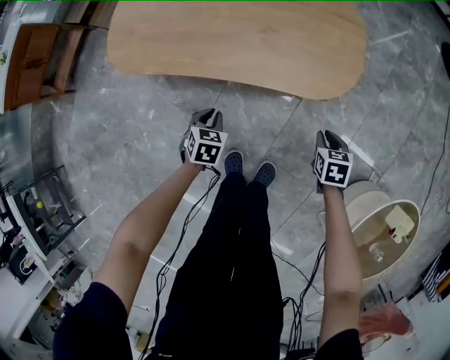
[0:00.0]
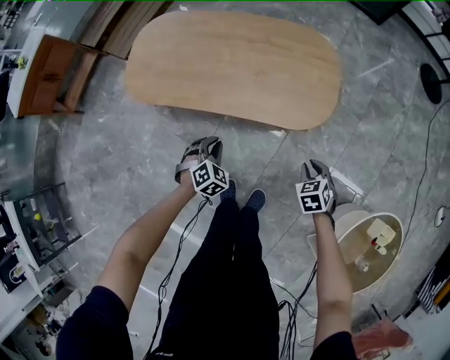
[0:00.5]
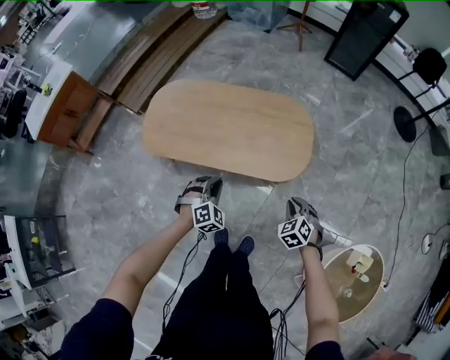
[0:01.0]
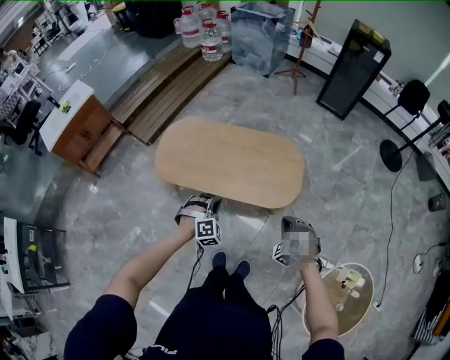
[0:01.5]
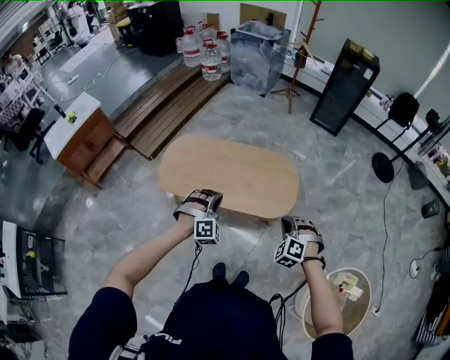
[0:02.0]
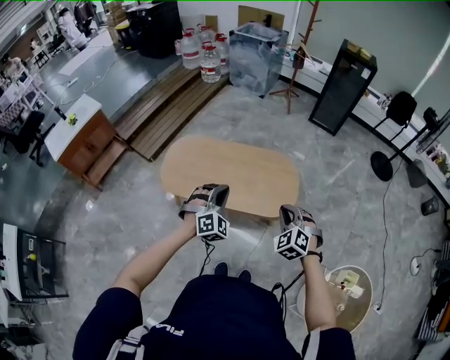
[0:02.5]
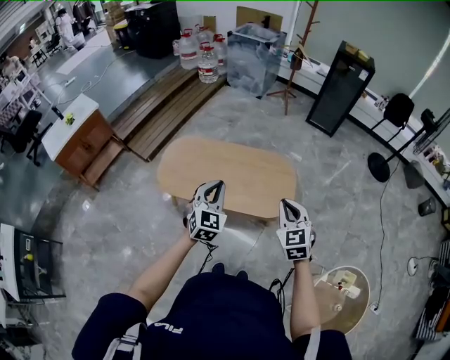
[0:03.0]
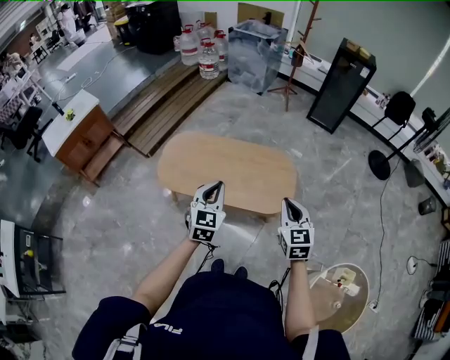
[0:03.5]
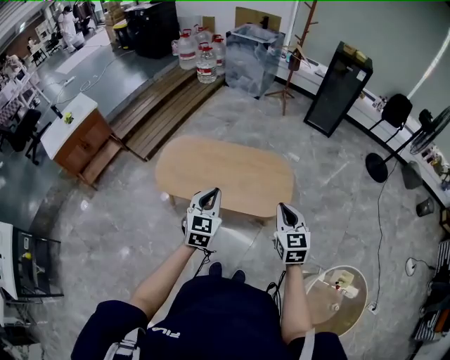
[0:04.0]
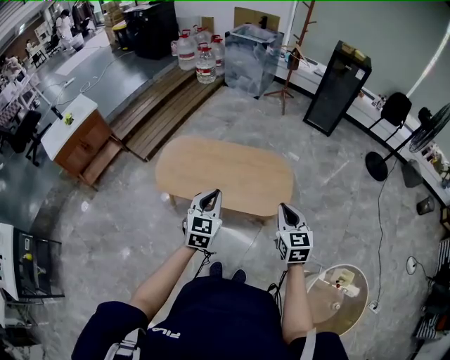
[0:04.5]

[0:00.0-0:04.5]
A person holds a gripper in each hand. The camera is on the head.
0:00.0 to 0:02.0: Both grippers move upward, roughly 50 cm. The right gripper twists roughly 70 degrees counterclockwise, seen from behind; the left gripper rotates around the line of its fingers by about 70 degrees, clockwise from behind.
0:02.0 to 0:04.5: Both grippers travel together upward, roughly 10 cm. The right gripper rotates around the line of its fingers by some 60 degrees, clockwise from behind. The left gripper rolls counterclockwise, seen from behind, by some 70 degrees.

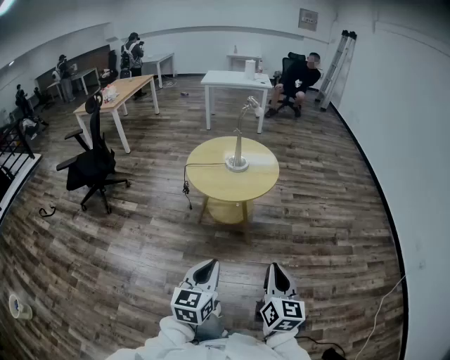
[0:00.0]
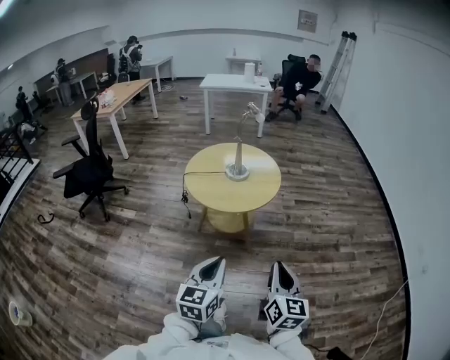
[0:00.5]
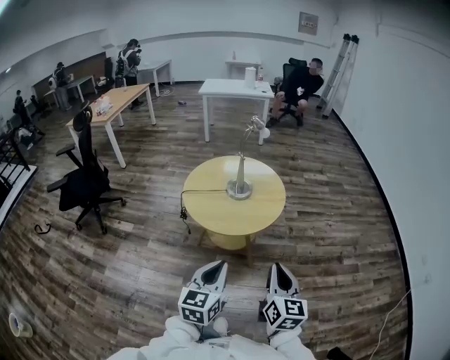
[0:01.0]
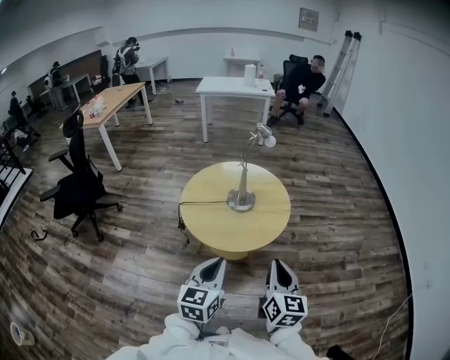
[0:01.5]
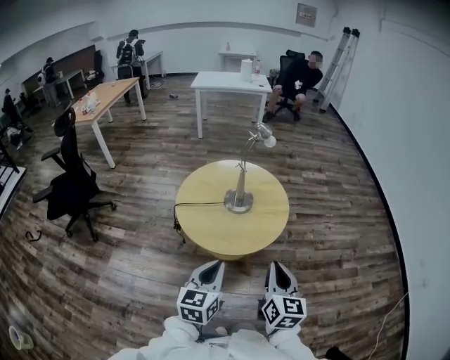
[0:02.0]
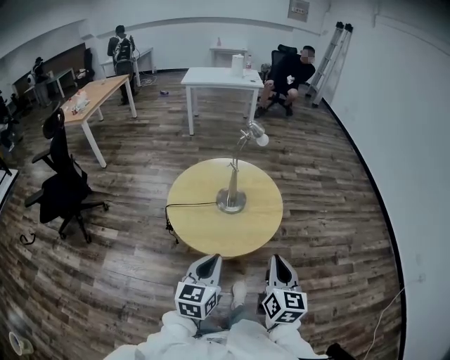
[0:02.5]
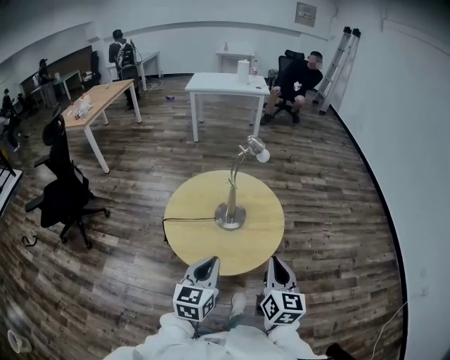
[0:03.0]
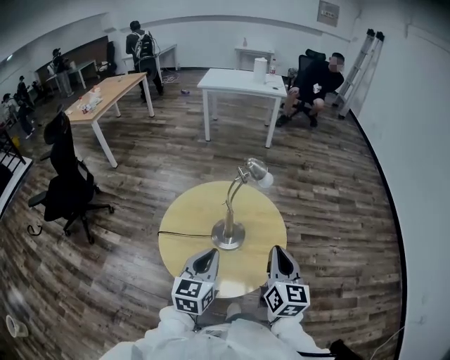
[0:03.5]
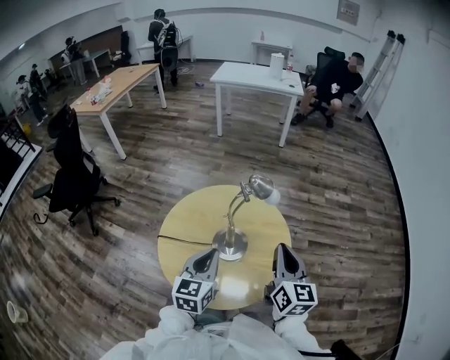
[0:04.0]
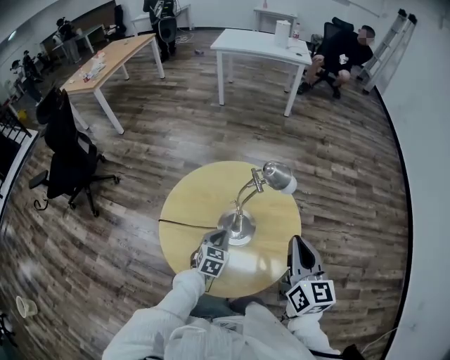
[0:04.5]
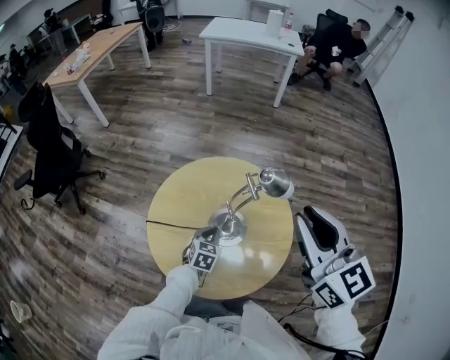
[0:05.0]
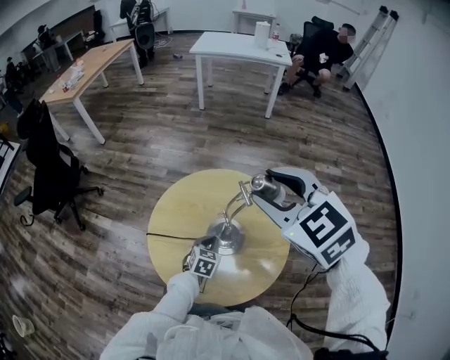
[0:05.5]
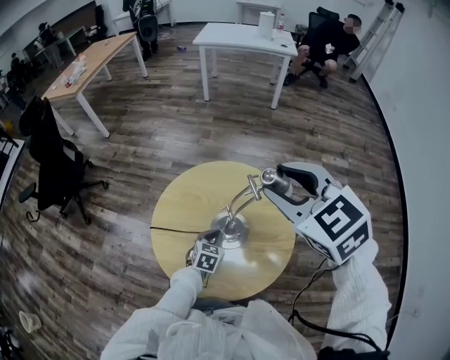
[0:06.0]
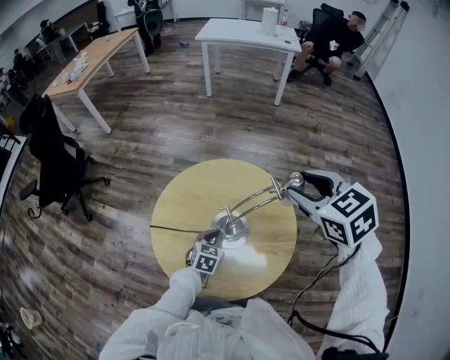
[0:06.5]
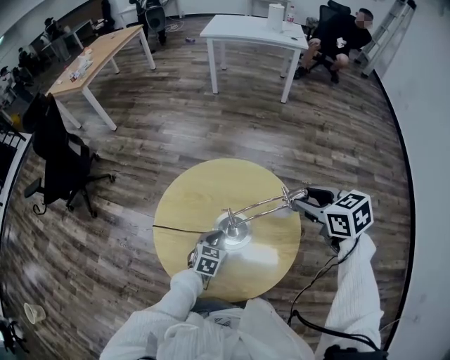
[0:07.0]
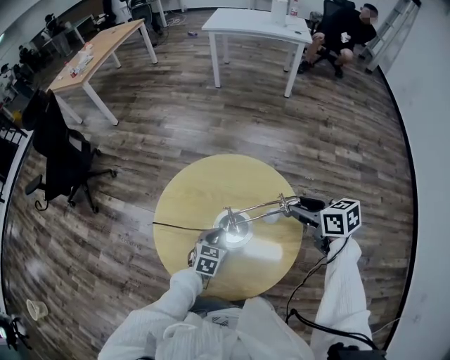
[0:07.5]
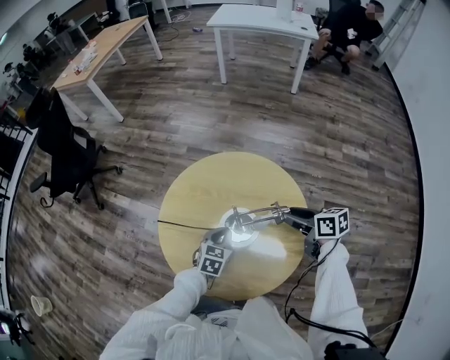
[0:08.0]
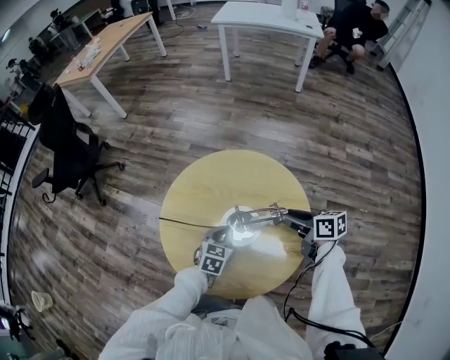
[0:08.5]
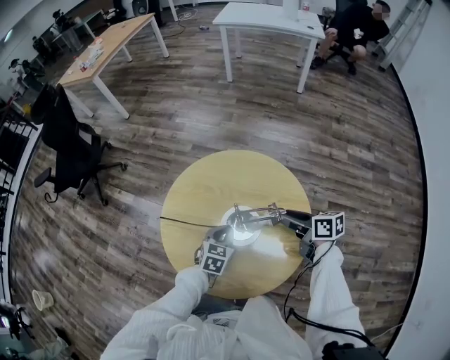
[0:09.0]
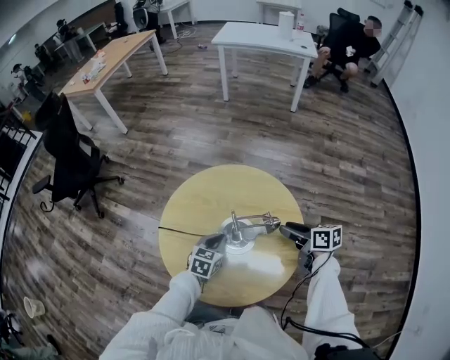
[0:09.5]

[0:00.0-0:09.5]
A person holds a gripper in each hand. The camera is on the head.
0:00.0 to 0:02.0: The two grippers go some 35 cm forward.
0:02.0 to 0:04.0: The two grippers go approximately 35 cm forward.
0:04.0 to 0:05.5: The left gripper is displaced downward and forward by some 25 cm, and changes its angle by about 30 degrees, while the right gripper goes roughly 20 cm upward, to the left and forward, changes its angle by some 60 degrees, and opens.
0:05.5 to 0:07.5: The right gripper is displaced downward and to the right by approximately 30 cm, and twists about 40 degrees clockwise, seen from behind.
0:07.5 to 0:09.5: The right gripper goes some 10 cm downward, and turns by some 20 degrees.

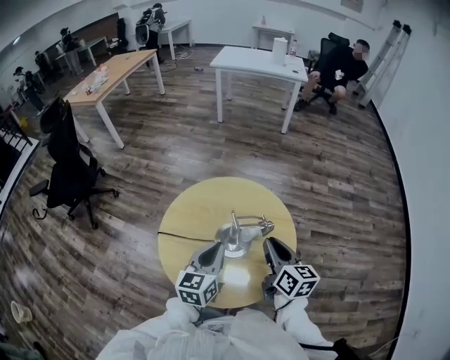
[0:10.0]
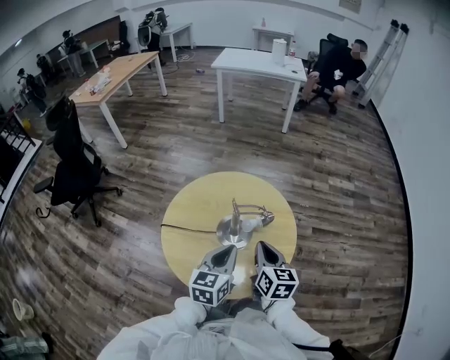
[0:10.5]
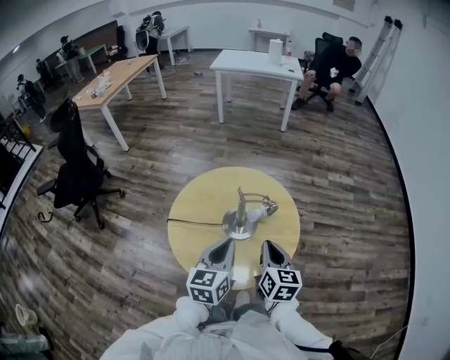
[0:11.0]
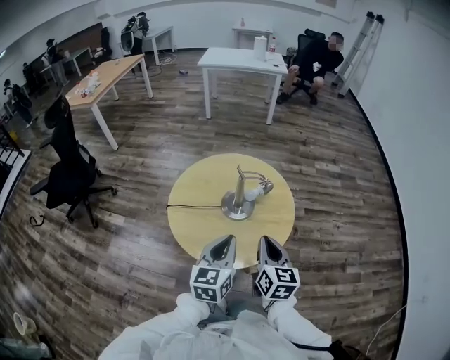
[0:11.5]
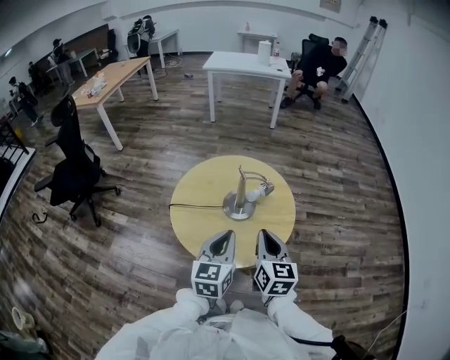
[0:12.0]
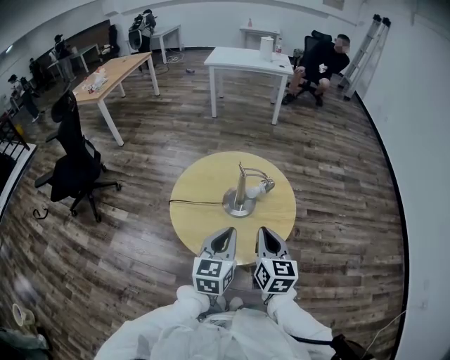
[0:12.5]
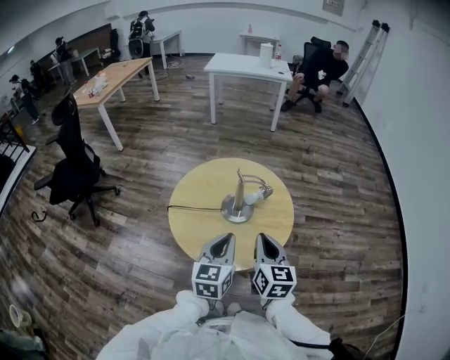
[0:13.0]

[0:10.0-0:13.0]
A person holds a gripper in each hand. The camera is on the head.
0:10.0 to 0:11.5: Both grippers travel together backward, some 20 cm. The right gripper closes its fingers.
0:11.5 to 0:13.0: The grippers make only small movements.

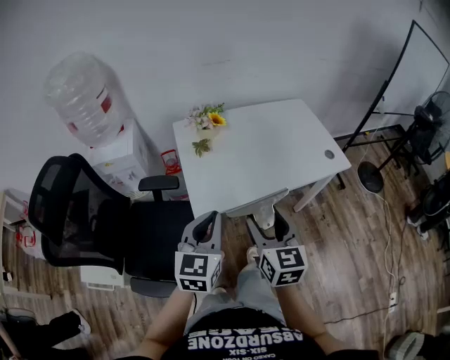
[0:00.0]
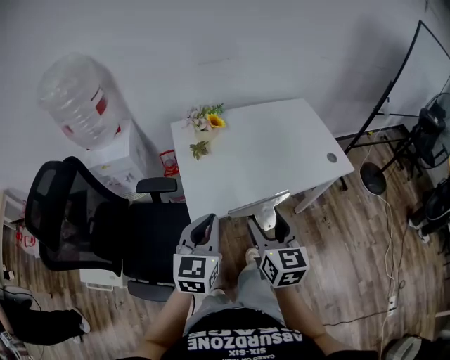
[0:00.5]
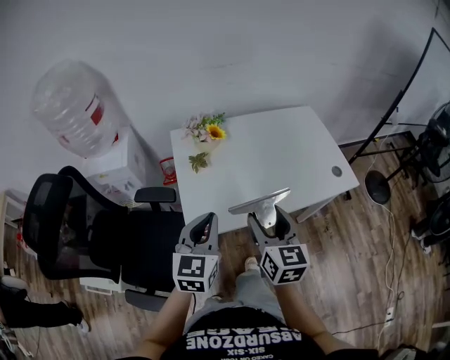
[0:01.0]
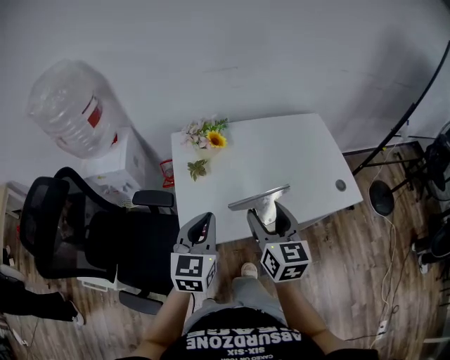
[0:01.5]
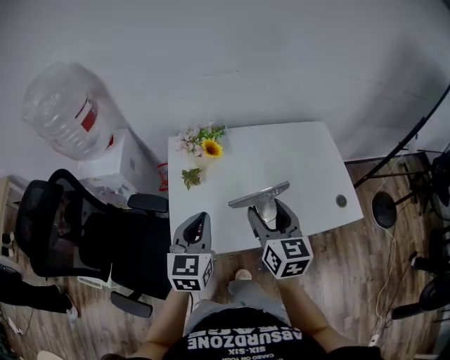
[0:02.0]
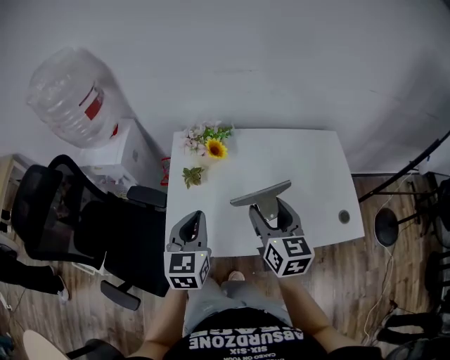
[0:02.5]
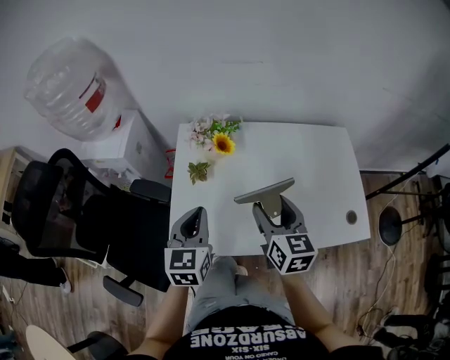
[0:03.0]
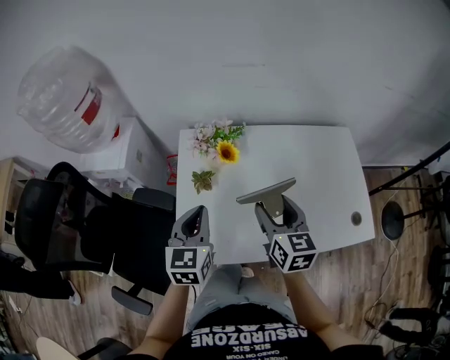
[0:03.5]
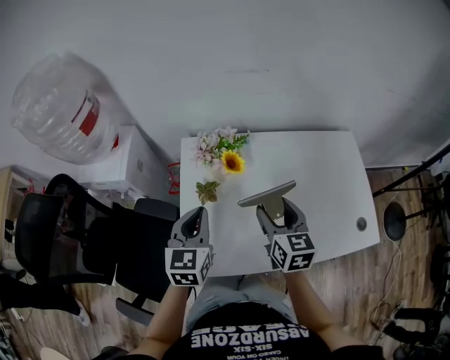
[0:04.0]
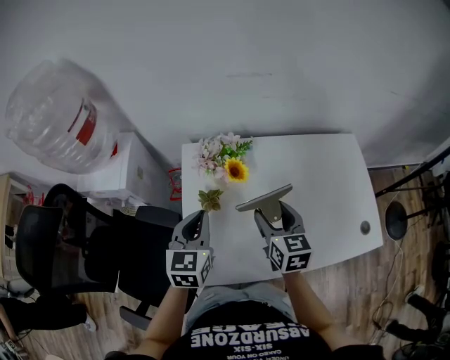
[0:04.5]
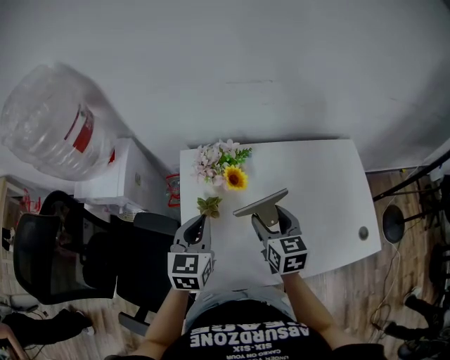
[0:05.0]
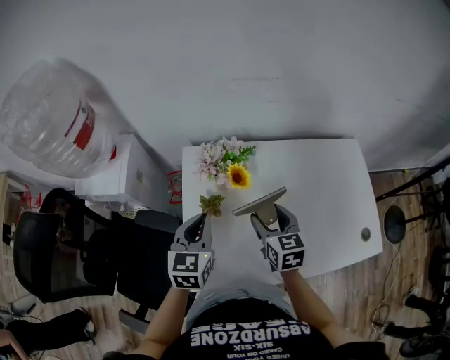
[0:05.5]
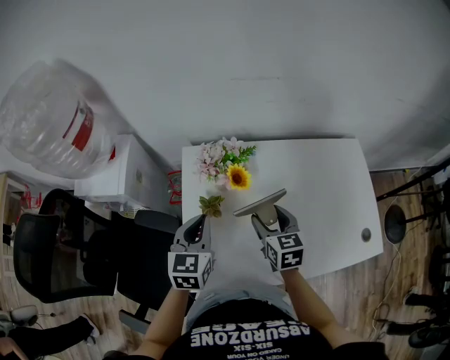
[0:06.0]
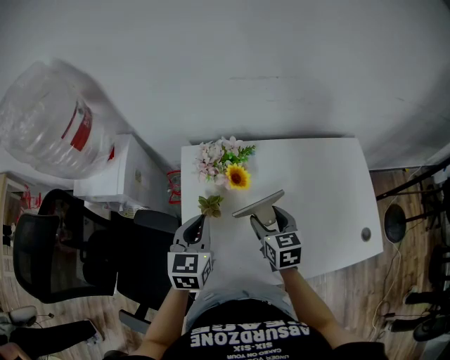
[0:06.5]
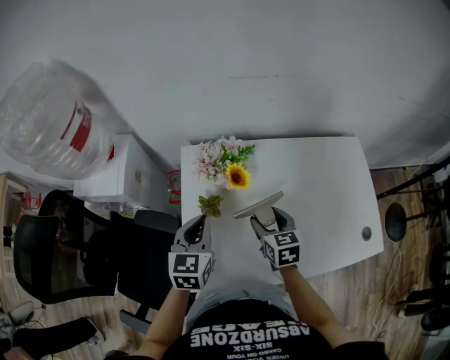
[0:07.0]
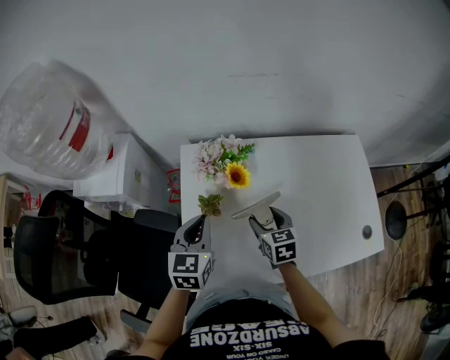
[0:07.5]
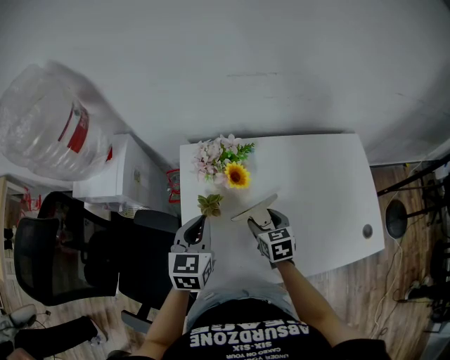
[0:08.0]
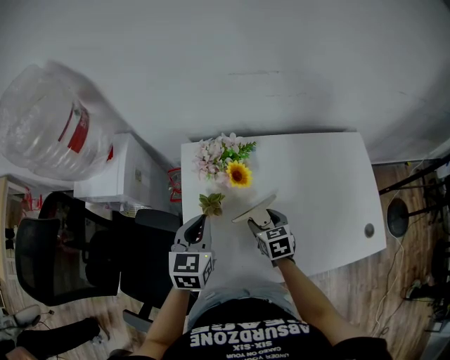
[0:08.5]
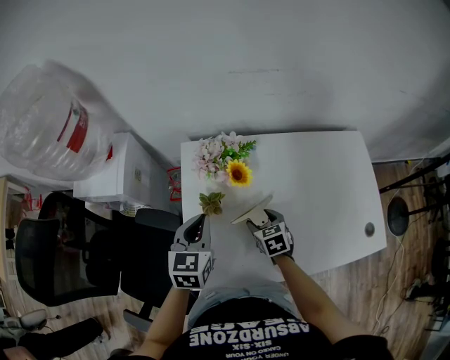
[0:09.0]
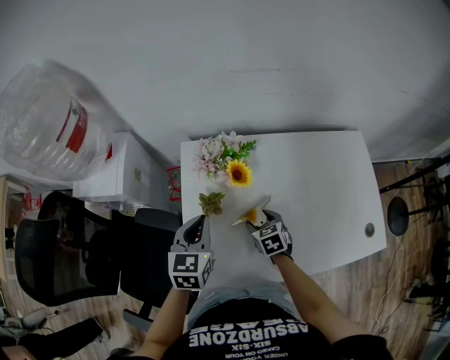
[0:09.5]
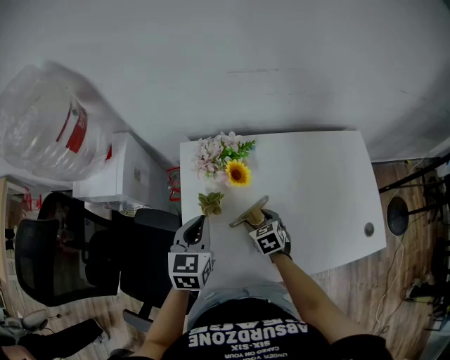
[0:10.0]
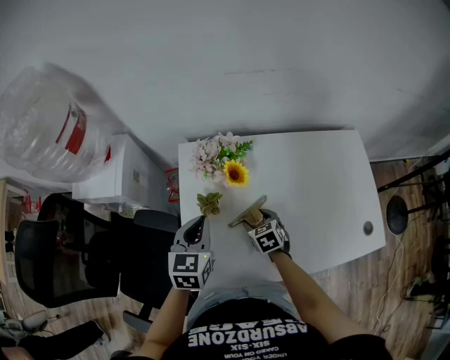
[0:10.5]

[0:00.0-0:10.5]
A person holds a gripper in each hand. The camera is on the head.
0:00.0 to 0:02.0: Both grippers move forward, about 25 cm.
0:02.0 to 0:04.0: The right gripper travels forward and downward by some 15 cm, while the left gripper travels forward and to the left by roughly 15 cm.
0:04.0 to 0:06.5: The right gripper goes roughly 10 cm downward and forward; the left gripper is displaced forward by about 5 cm.
0:06.5 to 0:08.5: The right gripper shifts some 10 cm downward.
0:08.5 to 0:10.5: The grippers make only small movements.
